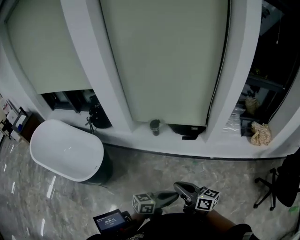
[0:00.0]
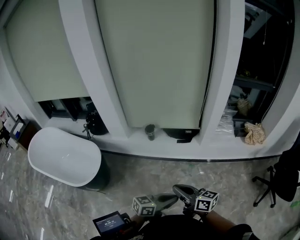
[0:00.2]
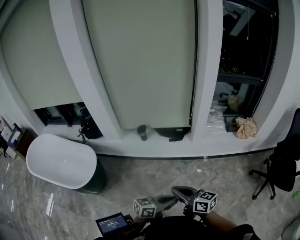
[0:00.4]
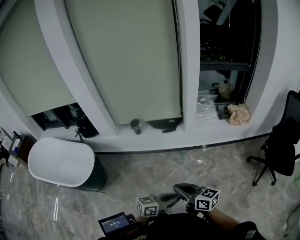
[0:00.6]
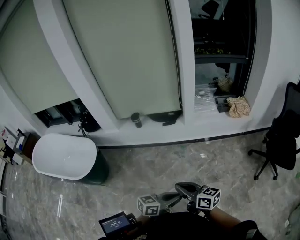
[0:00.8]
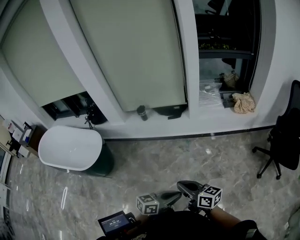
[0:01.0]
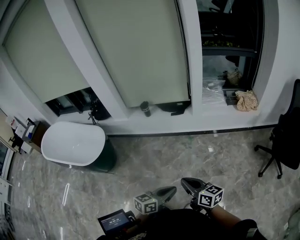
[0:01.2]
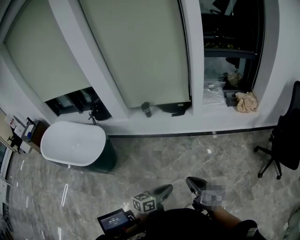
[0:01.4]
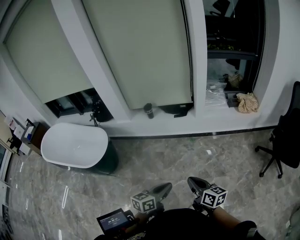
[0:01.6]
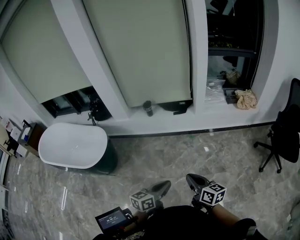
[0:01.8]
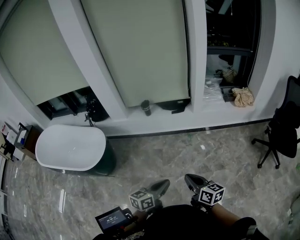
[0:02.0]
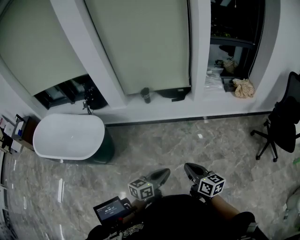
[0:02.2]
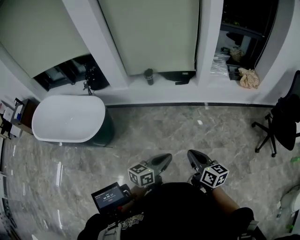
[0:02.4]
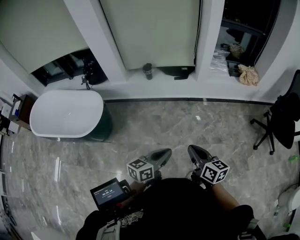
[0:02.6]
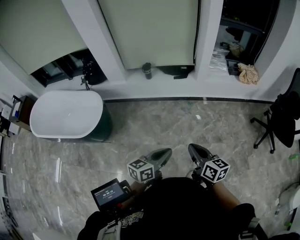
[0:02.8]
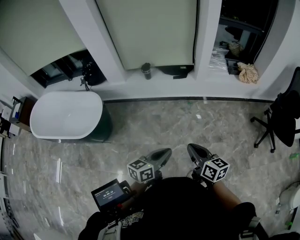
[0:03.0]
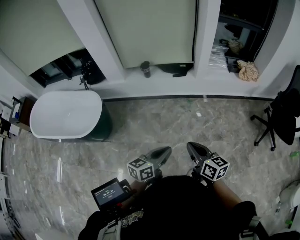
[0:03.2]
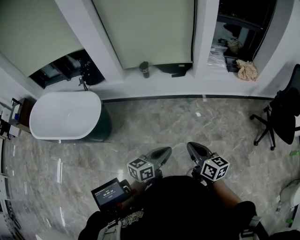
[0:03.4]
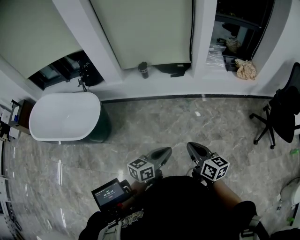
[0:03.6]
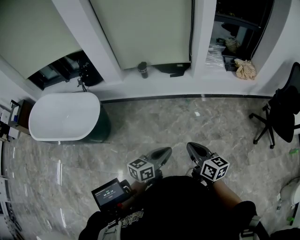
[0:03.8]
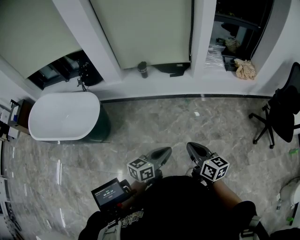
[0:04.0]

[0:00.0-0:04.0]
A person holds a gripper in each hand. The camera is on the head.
0:00.0 to 0:01.4: The left gripper shifts approximately 20 cm backward, while the right gripper shifts roughly 30 cm backward and to the right.
0:01.4 to 0:02.6: The grippers both shift to the left by approximately 10 cm.
0:02.6 to 0:04.0: The grippers stay close to where they were, moving slightly.

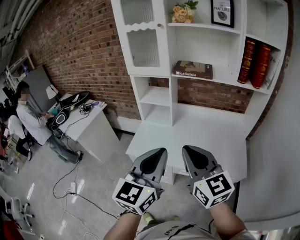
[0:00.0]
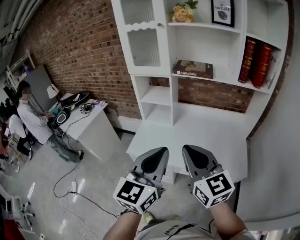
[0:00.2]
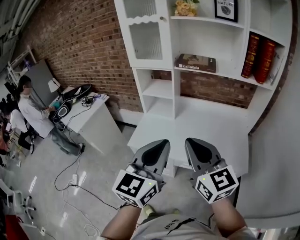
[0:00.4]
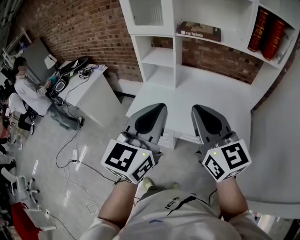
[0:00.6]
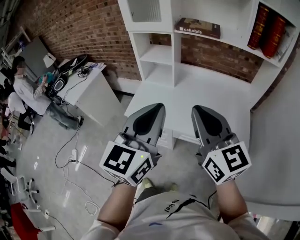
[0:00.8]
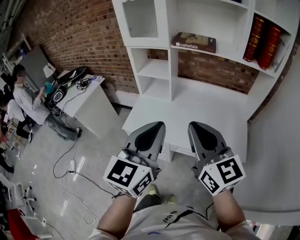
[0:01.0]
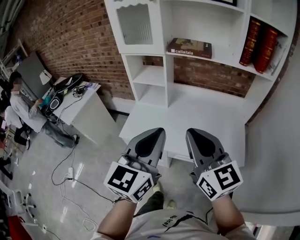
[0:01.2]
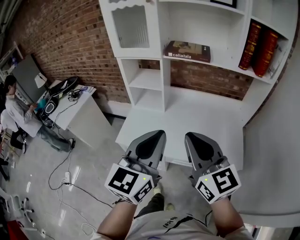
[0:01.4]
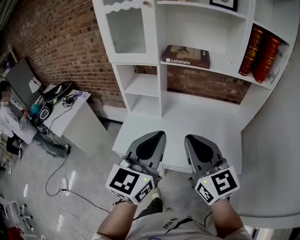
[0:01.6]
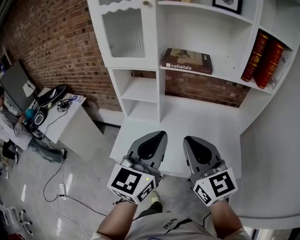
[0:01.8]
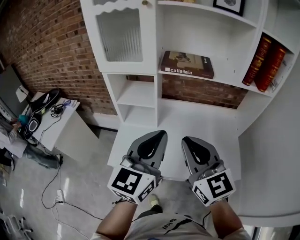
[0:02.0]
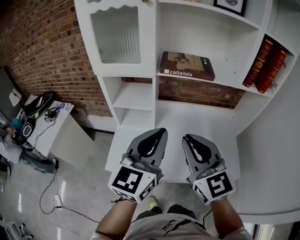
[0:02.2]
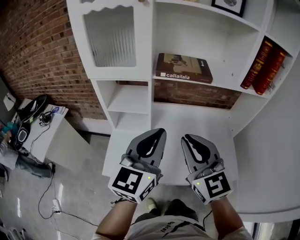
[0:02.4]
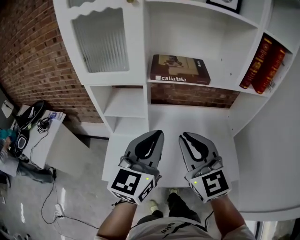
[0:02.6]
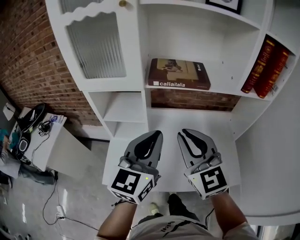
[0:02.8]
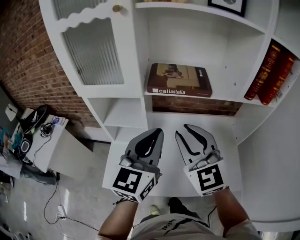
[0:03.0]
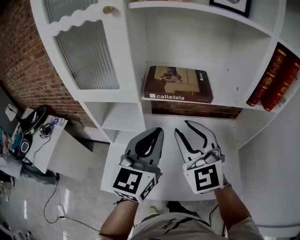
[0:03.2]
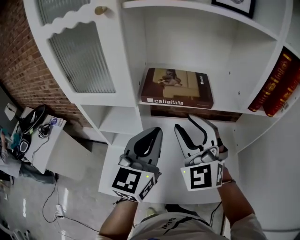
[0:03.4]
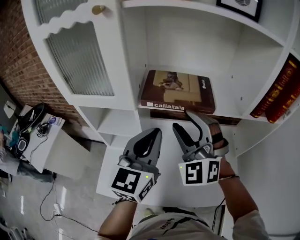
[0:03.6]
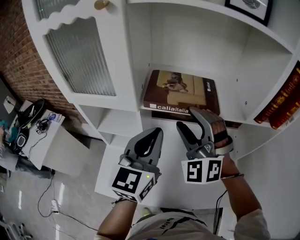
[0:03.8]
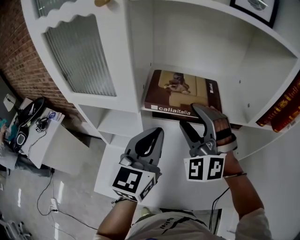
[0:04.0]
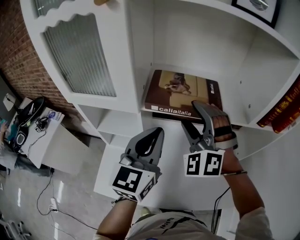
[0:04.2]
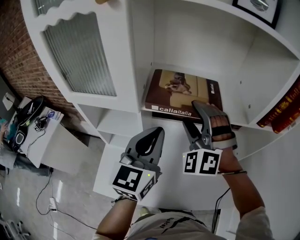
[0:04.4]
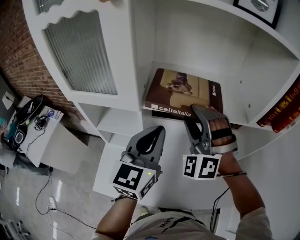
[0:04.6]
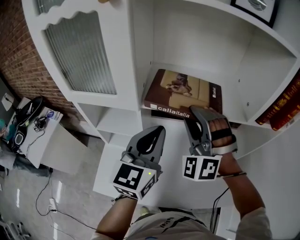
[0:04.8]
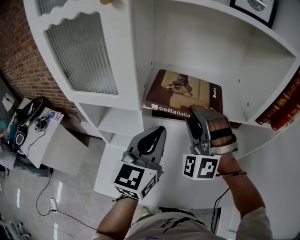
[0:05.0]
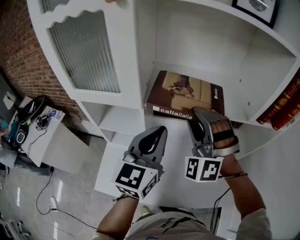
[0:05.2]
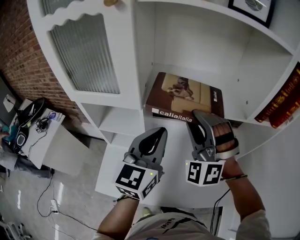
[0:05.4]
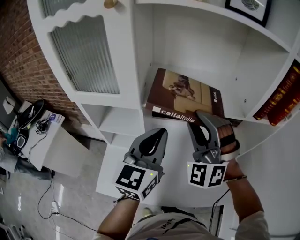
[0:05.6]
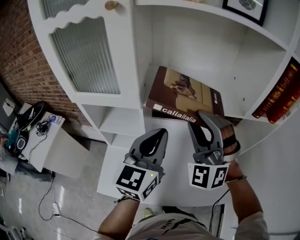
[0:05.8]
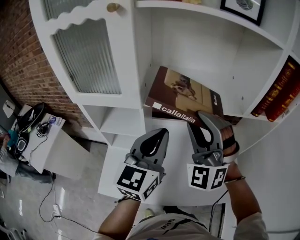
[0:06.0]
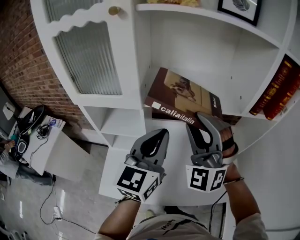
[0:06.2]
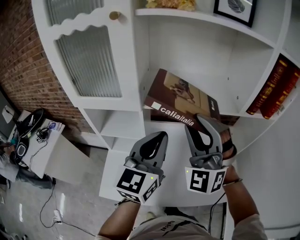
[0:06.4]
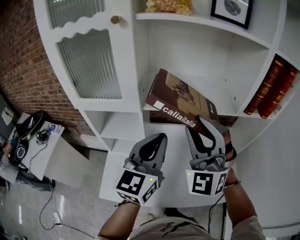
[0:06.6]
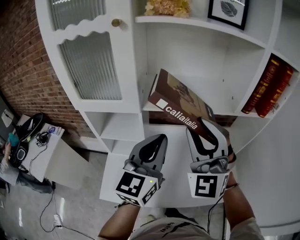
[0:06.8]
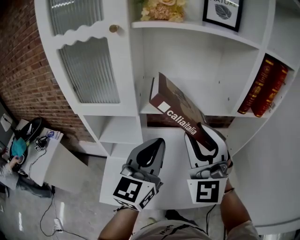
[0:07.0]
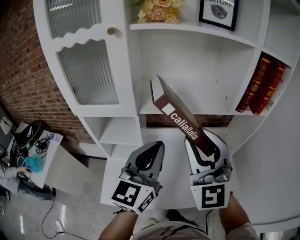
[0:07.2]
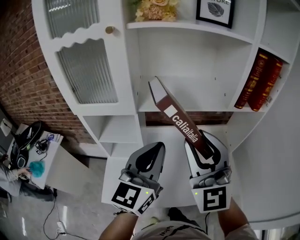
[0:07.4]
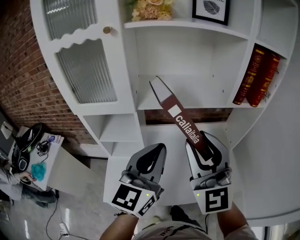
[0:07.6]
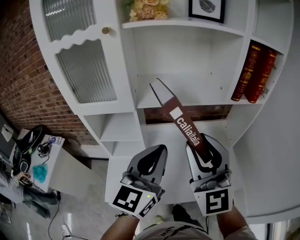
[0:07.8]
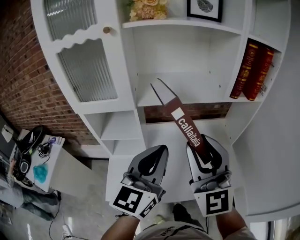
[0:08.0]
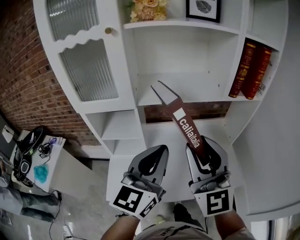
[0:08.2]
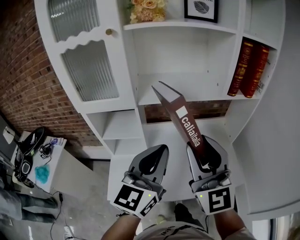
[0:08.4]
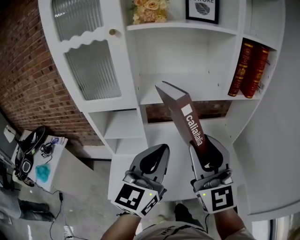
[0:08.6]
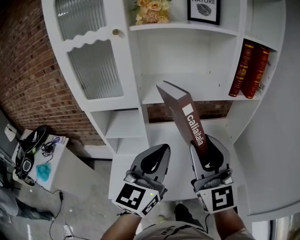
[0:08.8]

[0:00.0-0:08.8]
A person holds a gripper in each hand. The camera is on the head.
0:00.0 to 0:01.4: The right gripper shifts by some 5 cm. The left gripper goes some 5 cm forward.
0:01.4 to 0:03.0: The two grippers go approximately 30 cm forward. The right gripper rotates roughly 30 degrees.
0:03.0 to 0:04.4: The right gripper shifts approximately 15 cm forward, rolls counterclockwise, seen from behind, by some 50 degrees, and opens. Meanwhile the left gripper heads forward, covering roughly 10 cm.
0:04.4 to 0:05.8: The right gripper is displaced backward by roughly 5 cm, and closes its fingers.
0:05.8 to 0:07.4: The right gripper heads backward and upward, covering some 15 cm, and twists roughly 40 degrees clockwise, seen from behind, while the left gripper moves backward, approximately 10 cm.
0:07.4 to 0:08.8: The grippers both shift backward by some 10 cm.

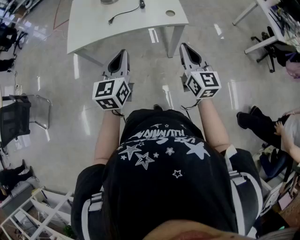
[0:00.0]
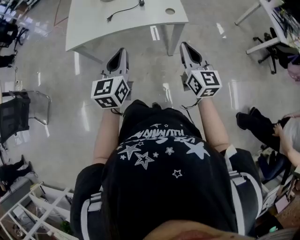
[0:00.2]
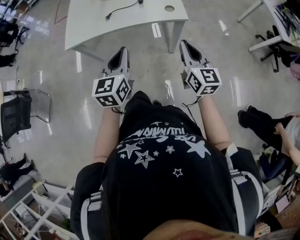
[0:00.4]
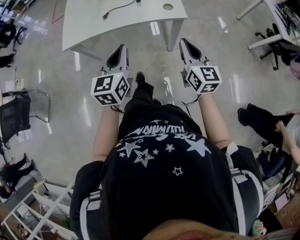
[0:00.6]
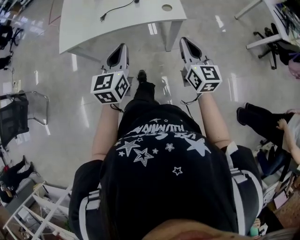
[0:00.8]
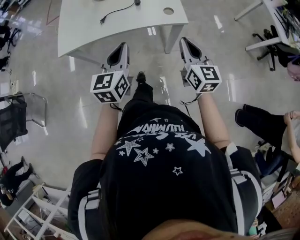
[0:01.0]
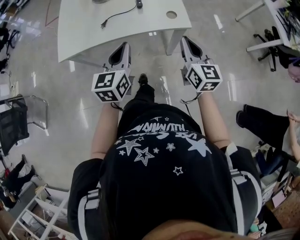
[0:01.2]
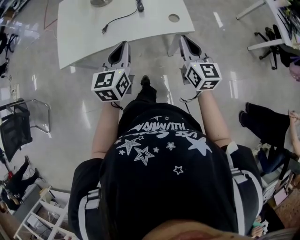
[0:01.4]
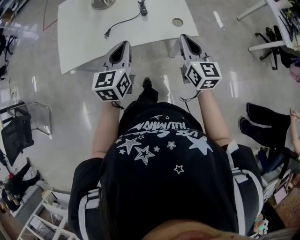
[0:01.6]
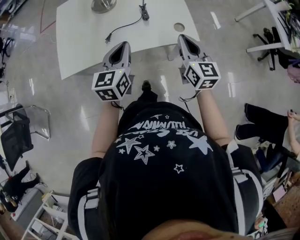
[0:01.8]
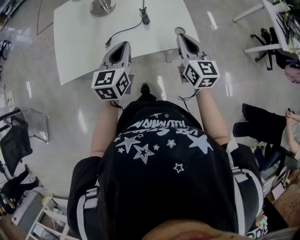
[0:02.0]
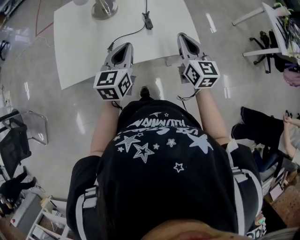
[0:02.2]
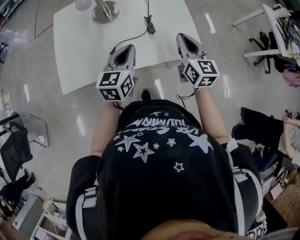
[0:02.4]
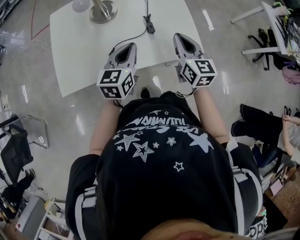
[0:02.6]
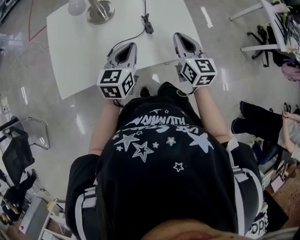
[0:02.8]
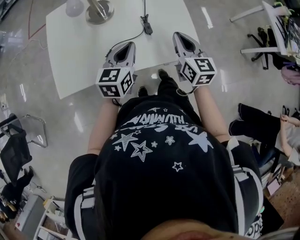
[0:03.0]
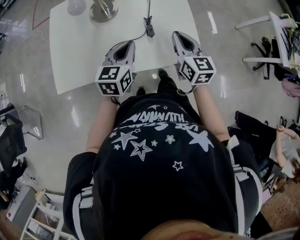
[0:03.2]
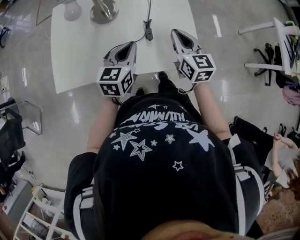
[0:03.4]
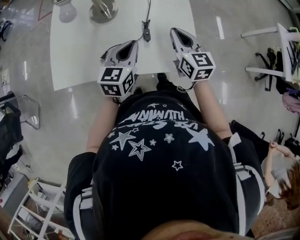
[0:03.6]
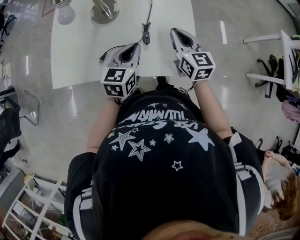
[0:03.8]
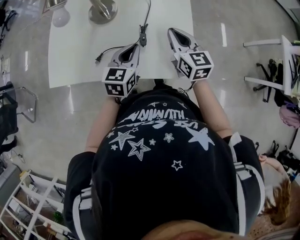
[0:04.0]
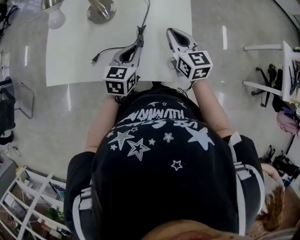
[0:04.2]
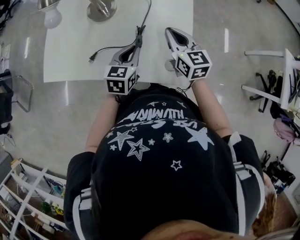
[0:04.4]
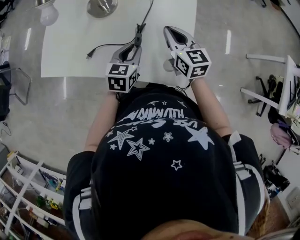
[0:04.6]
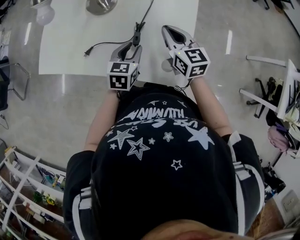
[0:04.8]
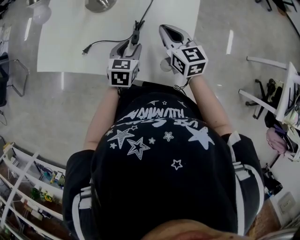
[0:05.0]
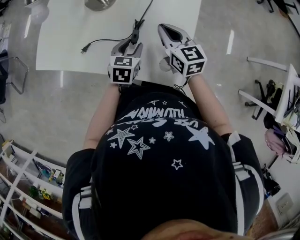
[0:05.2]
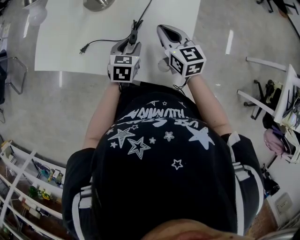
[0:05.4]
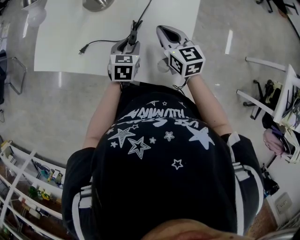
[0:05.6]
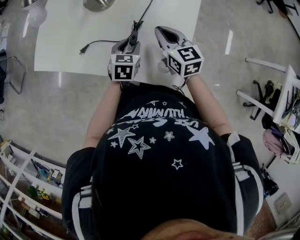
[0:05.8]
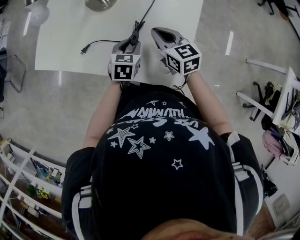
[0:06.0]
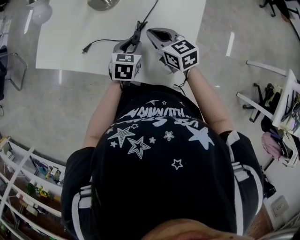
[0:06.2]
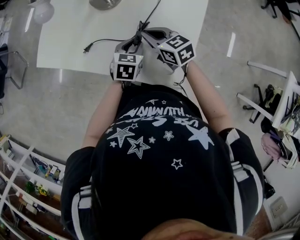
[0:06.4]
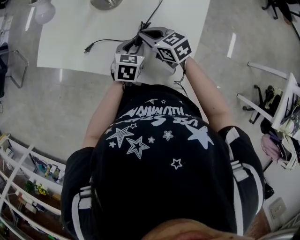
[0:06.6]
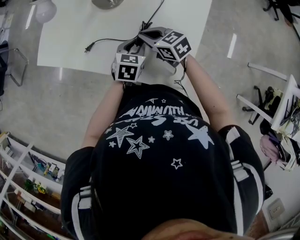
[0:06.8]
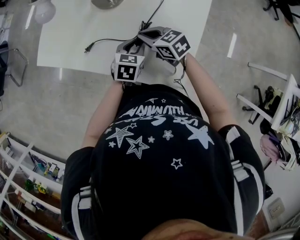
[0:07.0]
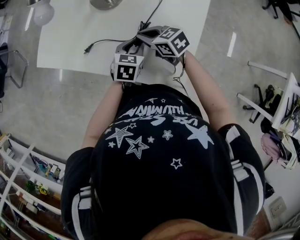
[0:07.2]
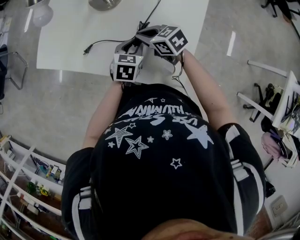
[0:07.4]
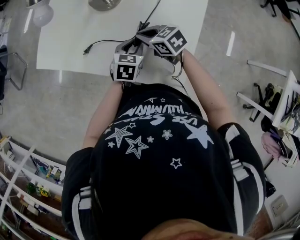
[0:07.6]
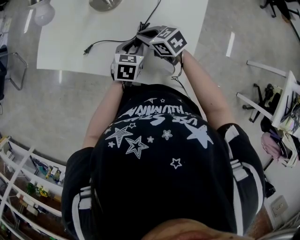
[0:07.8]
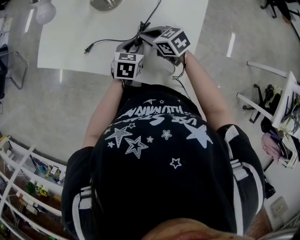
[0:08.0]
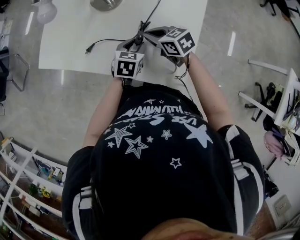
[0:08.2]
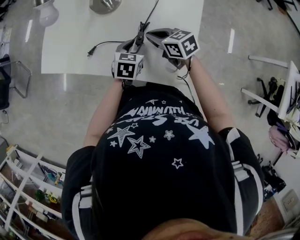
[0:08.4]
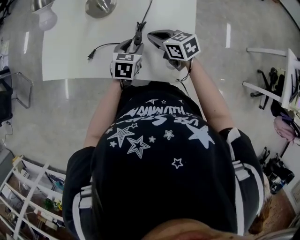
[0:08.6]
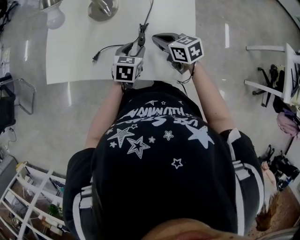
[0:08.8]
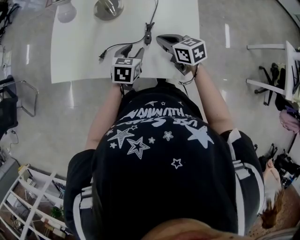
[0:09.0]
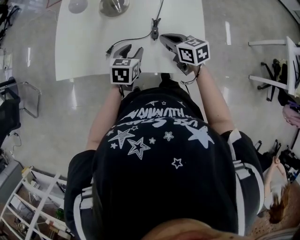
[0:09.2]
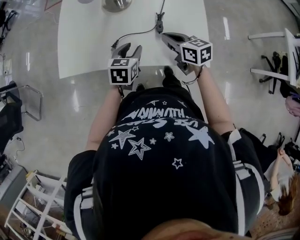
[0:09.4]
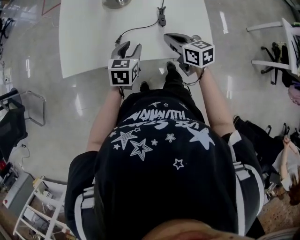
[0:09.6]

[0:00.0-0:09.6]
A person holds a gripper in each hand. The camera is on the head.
0:00.0 to 0:01.6: Both grippers move forward, about 20 cm.
0:01.6 to 0:03.2: Both grippers move forward, roughly 15 cm.
0:03.2 to 0:04.8: The left gripper moves downward and to the right, approximately 15 cm, changes its angle by about 20 degrees, and opens up. Meanwhile the right gripper heads forward, covering some 10 cm, and turns by about 30 degrees.
0:04.8 to 0:06.4: The right gripper travels to the left and downward by roughly 10 cm, and changes its angle by some 30 degrees.
0:06.4 to 0:08.0: The grippers stay close to where they were, moving slightly.
0:08.0 to 0:09.6: The right gripper shifts by some 10 cm, and turns by about 40 degrees, while the left gripper shifts by roughly 20 cm.

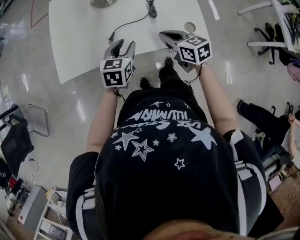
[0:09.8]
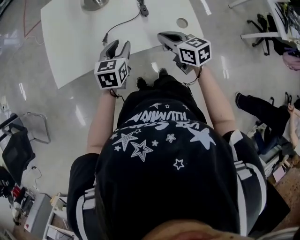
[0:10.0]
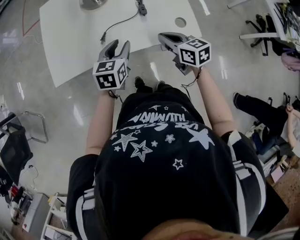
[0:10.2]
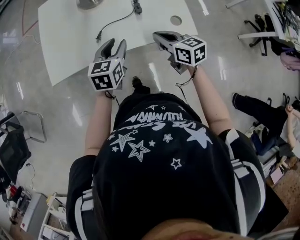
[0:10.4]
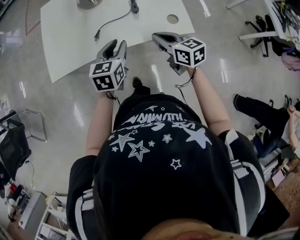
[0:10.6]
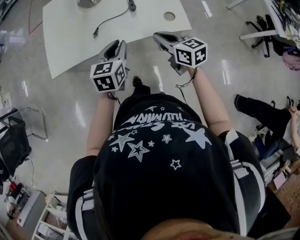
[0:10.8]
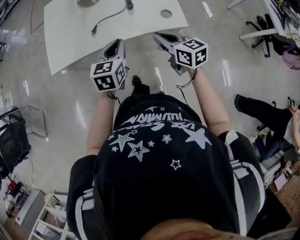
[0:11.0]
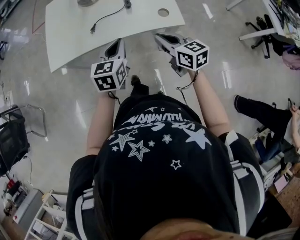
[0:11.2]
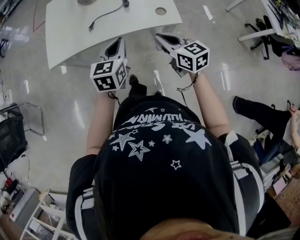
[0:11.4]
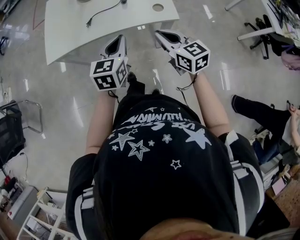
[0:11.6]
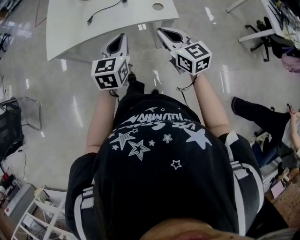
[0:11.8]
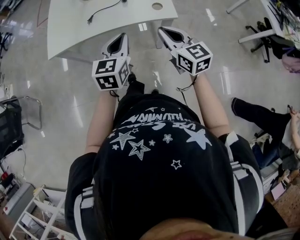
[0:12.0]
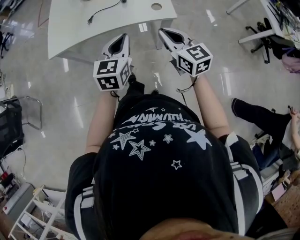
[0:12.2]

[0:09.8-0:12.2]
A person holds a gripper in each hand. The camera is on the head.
0:09.8 to 0:11.0: The left gripper is displaced backward, upward and to the right by roughly 15 cm, and closes, while the right gripper shifts roughly 15 cm backward, to the right and upward.
0:11.0 to 0:12.2: The left gripper is displaced backward, to the right and upward by roughly 15 cm, while the right gripper shifts about 10 cm backward and upward.
